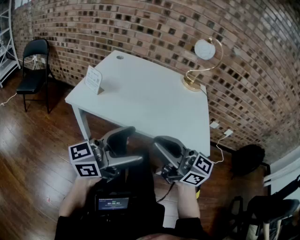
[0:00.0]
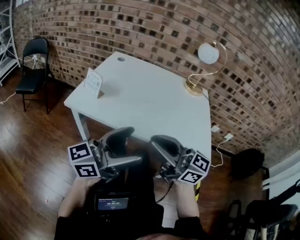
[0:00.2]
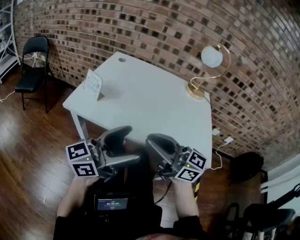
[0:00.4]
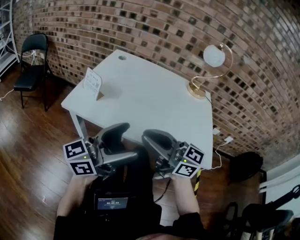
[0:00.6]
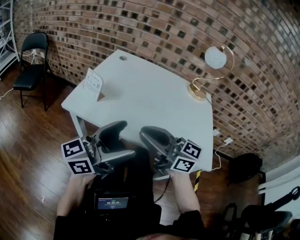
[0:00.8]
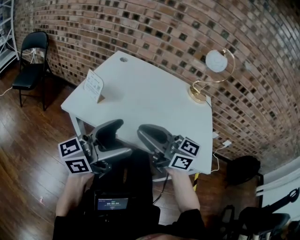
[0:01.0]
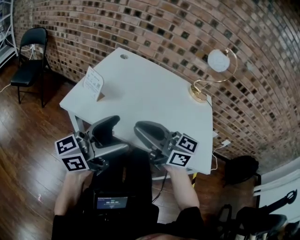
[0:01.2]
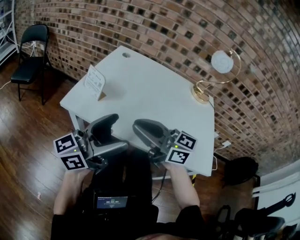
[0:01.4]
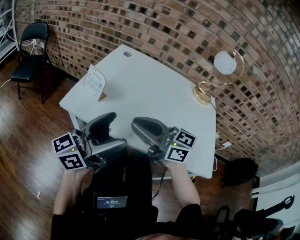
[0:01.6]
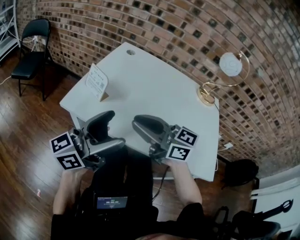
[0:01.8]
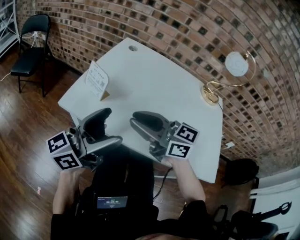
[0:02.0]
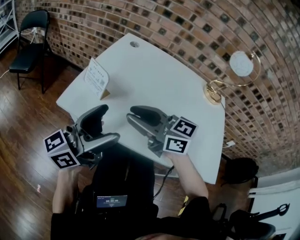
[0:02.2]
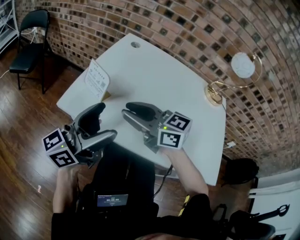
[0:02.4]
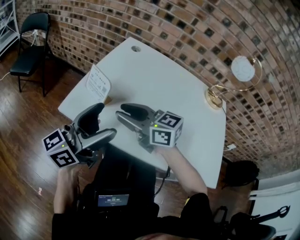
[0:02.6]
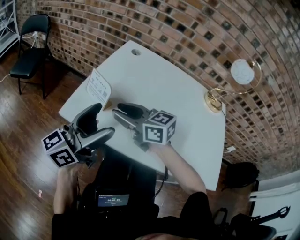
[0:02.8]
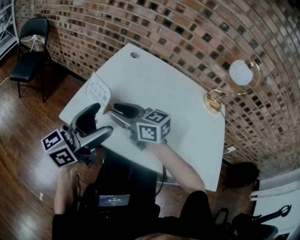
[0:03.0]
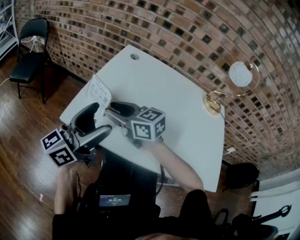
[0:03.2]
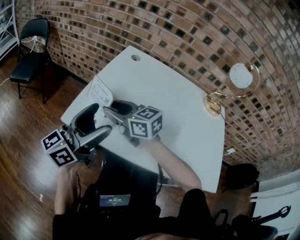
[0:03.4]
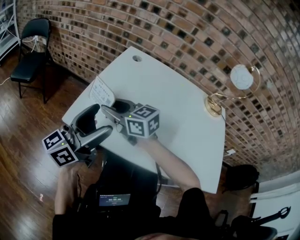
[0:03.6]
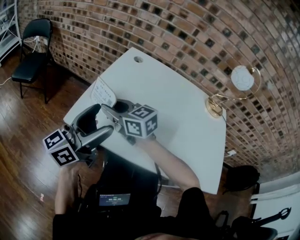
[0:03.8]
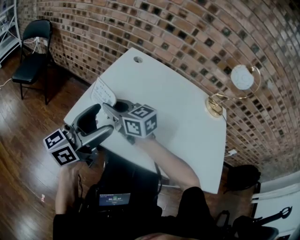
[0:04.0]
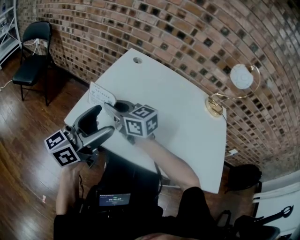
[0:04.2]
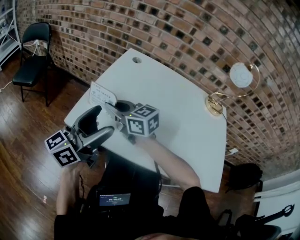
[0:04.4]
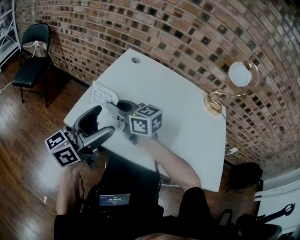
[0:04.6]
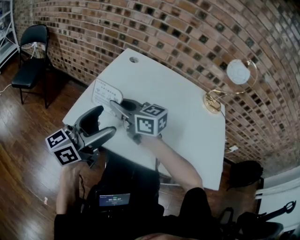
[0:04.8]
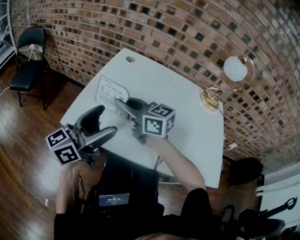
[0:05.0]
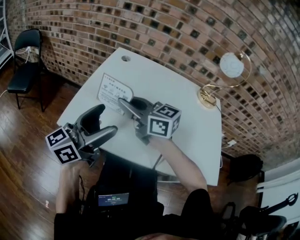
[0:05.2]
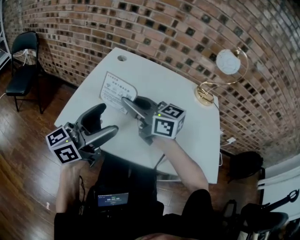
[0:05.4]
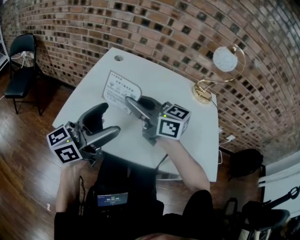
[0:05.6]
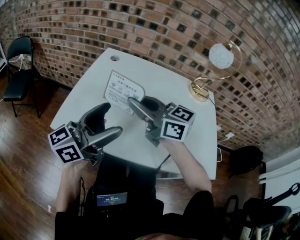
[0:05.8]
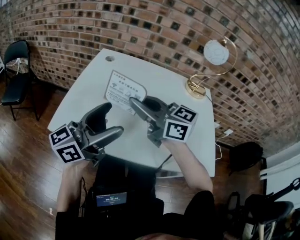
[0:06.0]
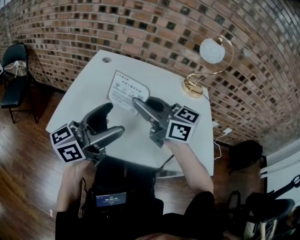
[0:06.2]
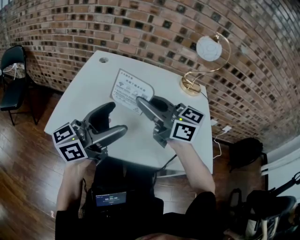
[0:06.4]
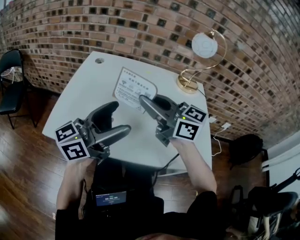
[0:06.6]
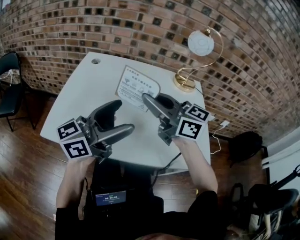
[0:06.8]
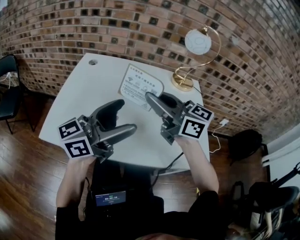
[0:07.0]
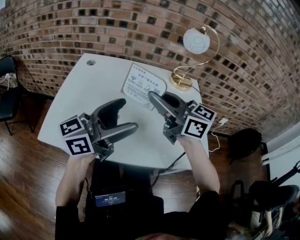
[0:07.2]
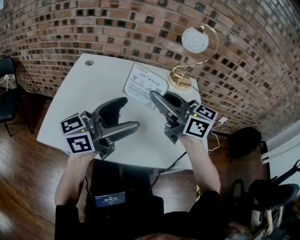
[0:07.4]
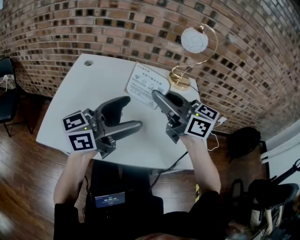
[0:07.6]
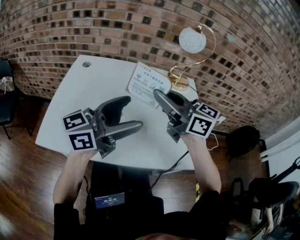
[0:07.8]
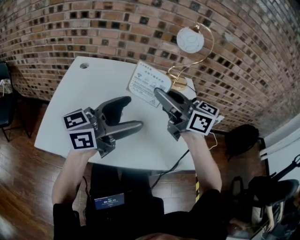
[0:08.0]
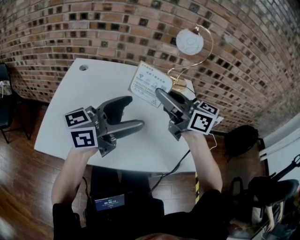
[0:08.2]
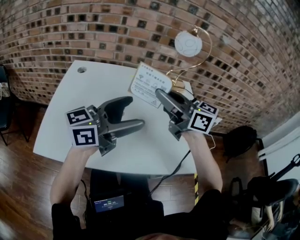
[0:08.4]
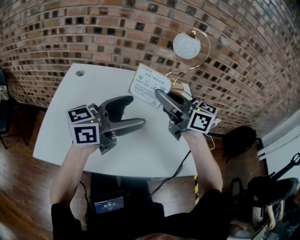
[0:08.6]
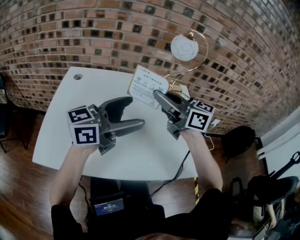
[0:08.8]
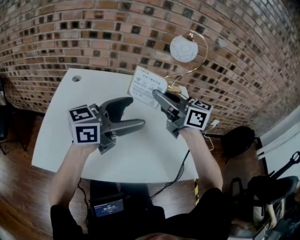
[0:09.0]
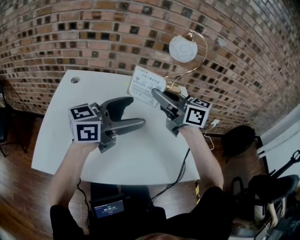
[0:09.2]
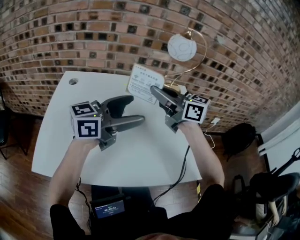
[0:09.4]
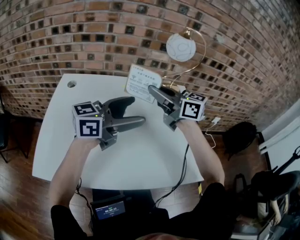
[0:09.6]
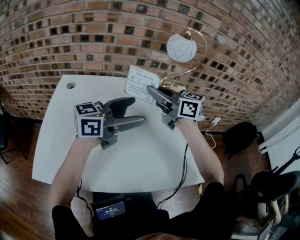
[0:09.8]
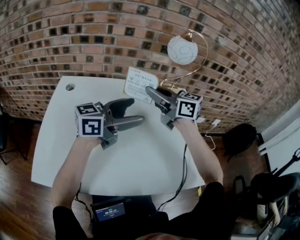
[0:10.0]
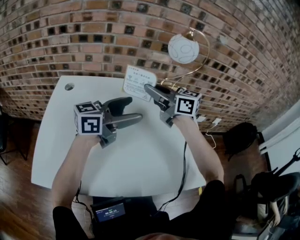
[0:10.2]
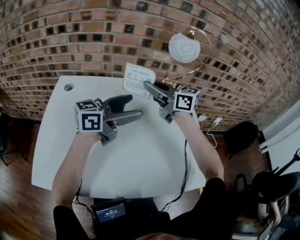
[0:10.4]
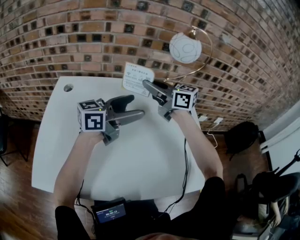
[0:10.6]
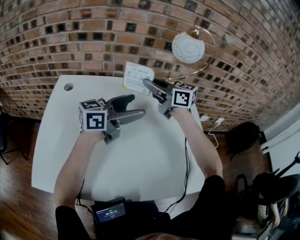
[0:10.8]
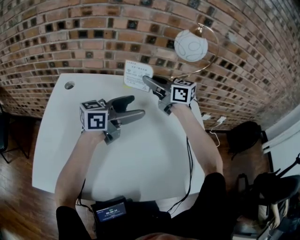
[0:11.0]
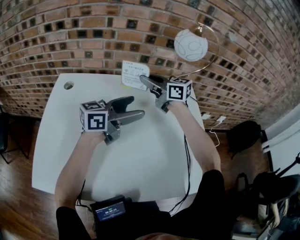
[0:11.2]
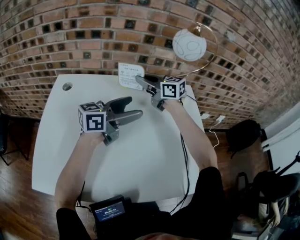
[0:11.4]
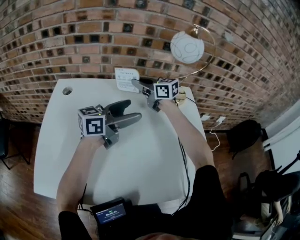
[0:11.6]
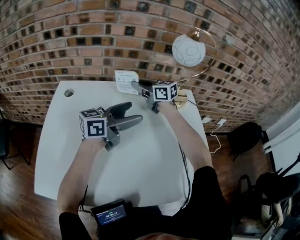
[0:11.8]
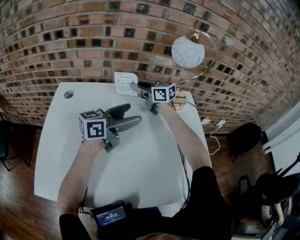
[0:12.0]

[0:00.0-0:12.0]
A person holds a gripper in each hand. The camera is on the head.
0:00.0 to 0:01.6: Both grippers travel together forward and to the left, roughly 20 cm.
0:01.6 to 0:03.0: The right gripper travels forward, to the left and downward by some 20 cm; the left gripper heads forward and to the left, covering about 15 cm.
0:03.0 to 0:04.4: The right gripper ends up some 5 cm from where it was, and closes up.
0:04.4 to 0:06.0: The right gripper is displaced to the right and upward by approximately 20 cm, while the left gripper goes approximately 10 cm to the right.
0:06.0 to 0:07.6: Both grippers travel together to the right, roughly 15 cm.
0:07.6 to 0:09.0: The two grippers go some 10 cm forward.
0:09.0 to 0:10.4: The right gripper ends up some 15 cm from where it was; the left gripper changes place by roughly 10 cm.
0:10.4 to 0:12.0: The right gripper ends up approximately 15 cm from where it was, while the left gripper moves approximately 5 cm.

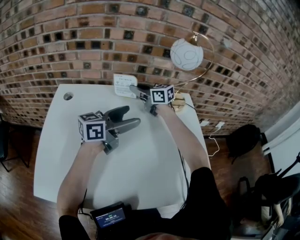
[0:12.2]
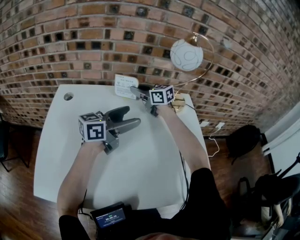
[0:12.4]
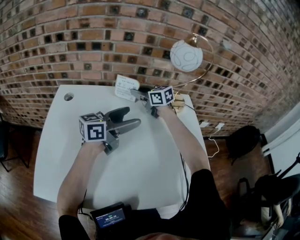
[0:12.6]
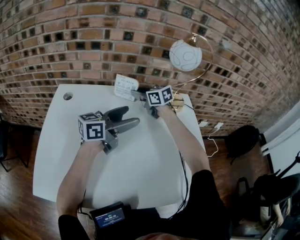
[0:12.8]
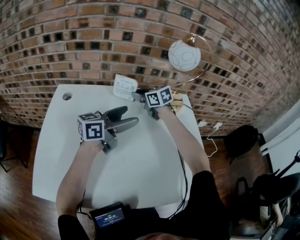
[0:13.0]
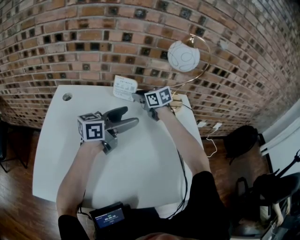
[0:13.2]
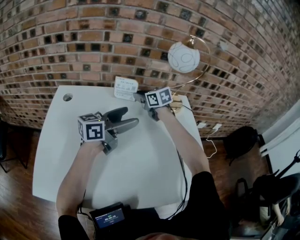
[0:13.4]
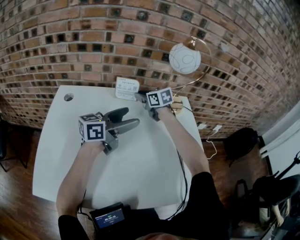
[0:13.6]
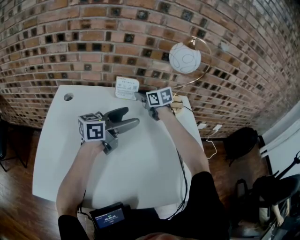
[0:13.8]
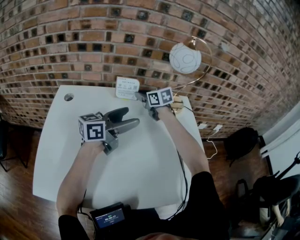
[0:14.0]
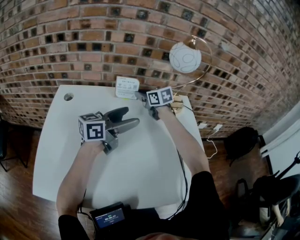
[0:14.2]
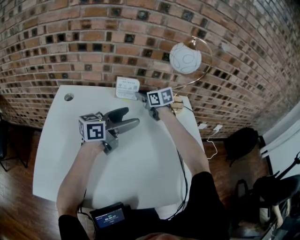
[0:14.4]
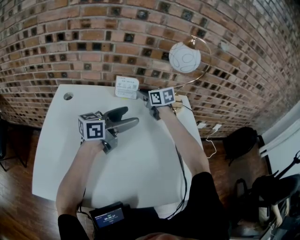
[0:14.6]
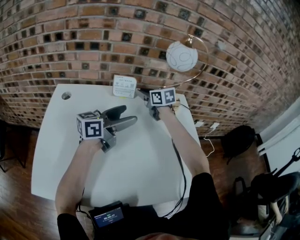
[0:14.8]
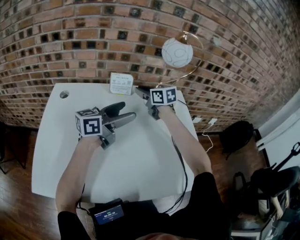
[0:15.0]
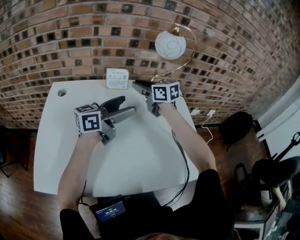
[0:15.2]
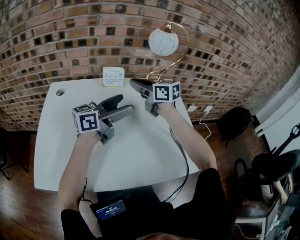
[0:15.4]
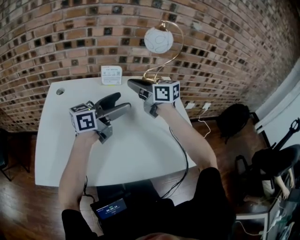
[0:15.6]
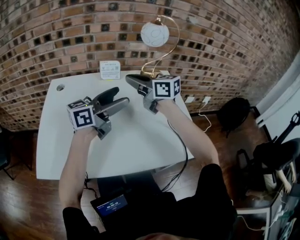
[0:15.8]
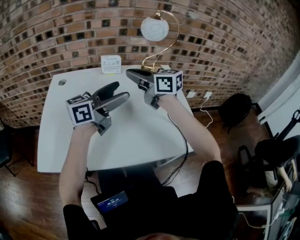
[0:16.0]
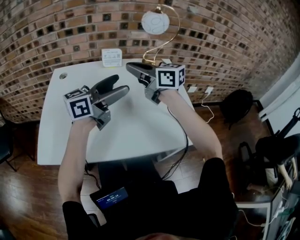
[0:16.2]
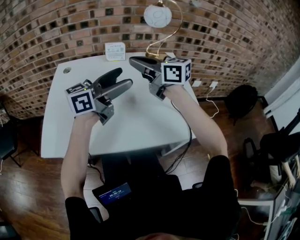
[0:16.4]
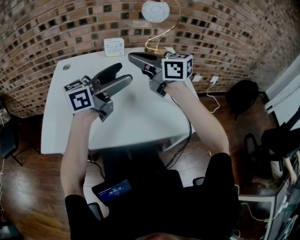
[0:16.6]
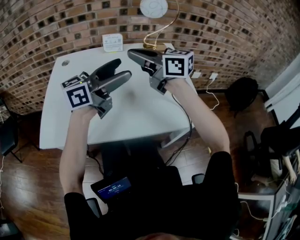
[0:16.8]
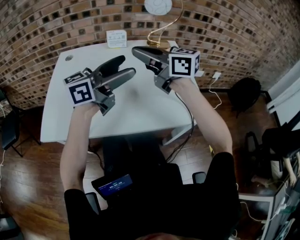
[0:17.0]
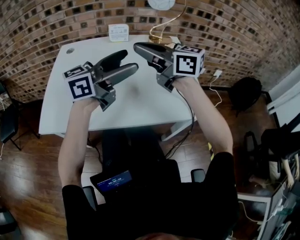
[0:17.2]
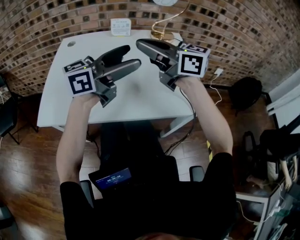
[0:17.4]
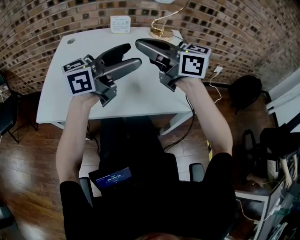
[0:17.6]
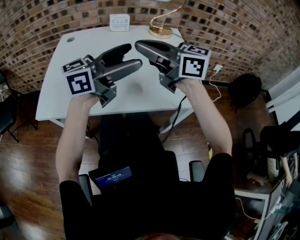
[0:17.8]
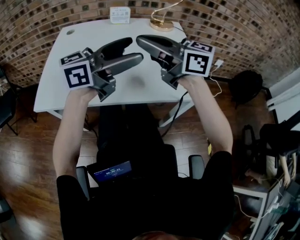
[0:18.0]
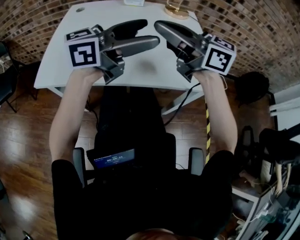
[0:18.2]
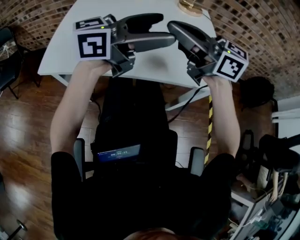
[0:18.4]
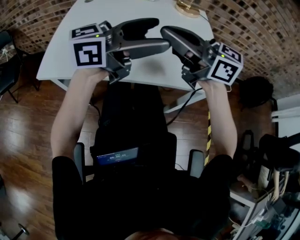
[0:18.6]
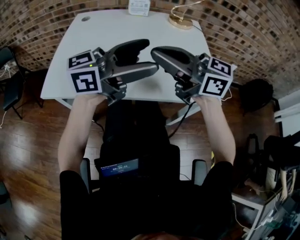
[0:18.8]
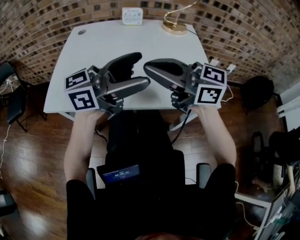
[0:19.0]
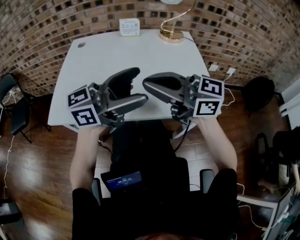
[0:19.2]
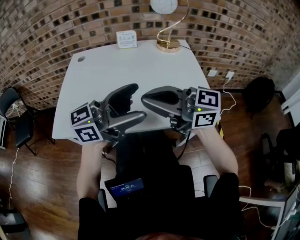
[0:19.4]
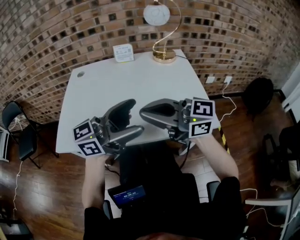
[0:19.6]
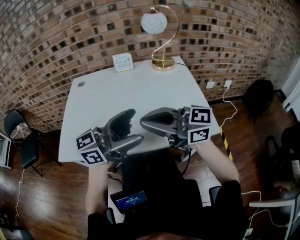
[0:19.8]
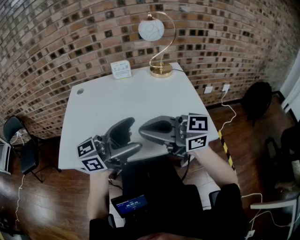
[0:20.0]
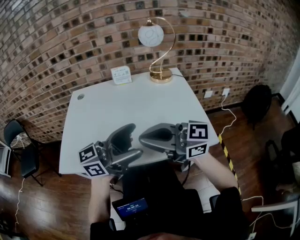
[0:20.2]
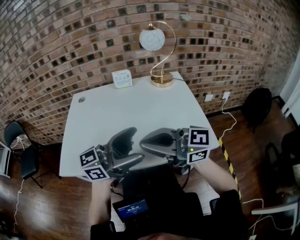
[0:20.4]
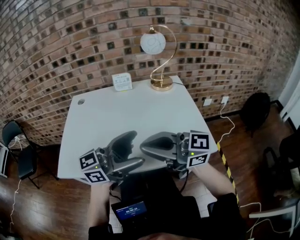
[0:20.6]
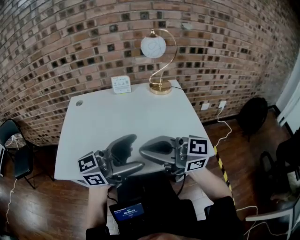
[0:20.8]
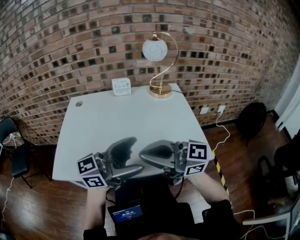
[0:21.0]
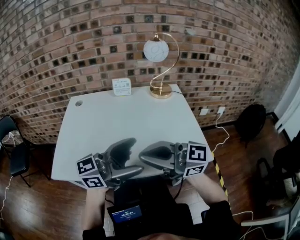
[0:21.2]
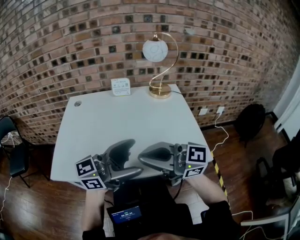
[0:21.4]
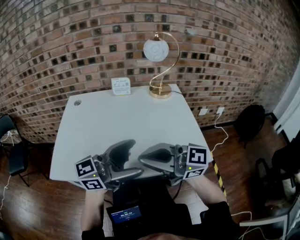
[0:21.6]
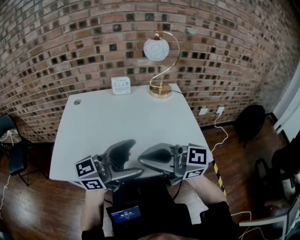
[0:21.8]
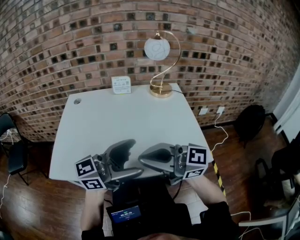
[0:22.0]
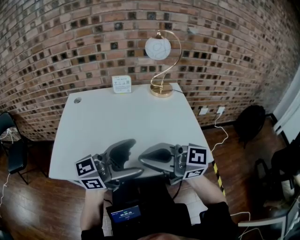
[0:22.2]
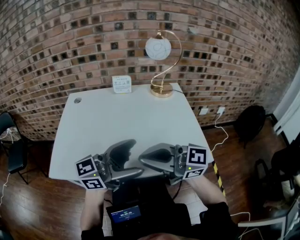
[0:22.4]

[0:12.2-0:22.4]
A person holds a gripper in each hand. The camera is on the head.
0:12.2 to 0:13.6: The right gripper changes place by about 5 cm, and changes its angle by about 20 degrees.
0:13.6 to 0:15.2: The right gripper moves upward and backward, some 10 cm.
0:15.2 to 0:16.6: The left gripper travels backward and upward by roughly 15 cm, while the right gripper travels backward and upward by some 25 cm, rotates about 20 degrees, and closes.
0:16.6 to 0:18.0: The right gripper ends up approximately 15 cm from where it was. Meanwhile the left gripper shifts by some 10 cm.
0:18.0 to 0:19.4: The right gripper ends up roughly 10 cm from where it was, while the left gripper changes place by approximately 5 cm.
0:19.4 to 0:22.4: There are only small adjustments of the grippers.

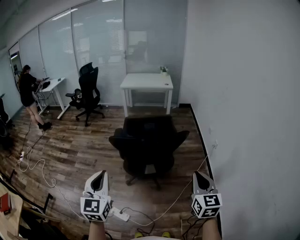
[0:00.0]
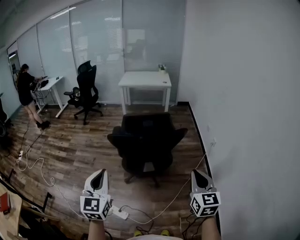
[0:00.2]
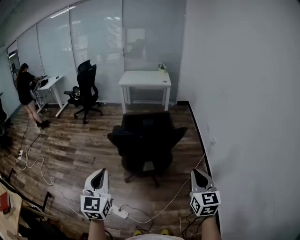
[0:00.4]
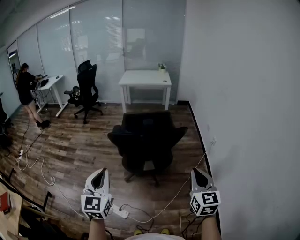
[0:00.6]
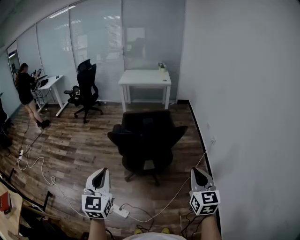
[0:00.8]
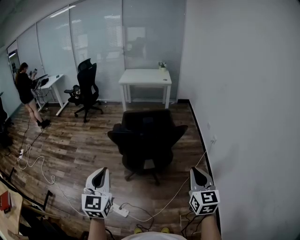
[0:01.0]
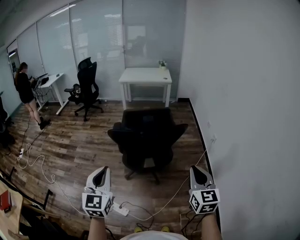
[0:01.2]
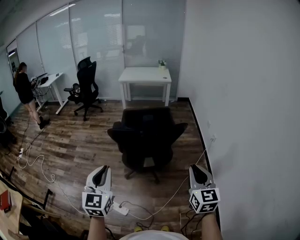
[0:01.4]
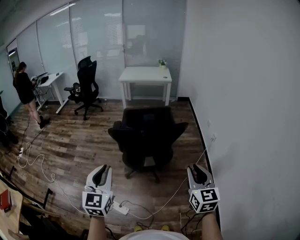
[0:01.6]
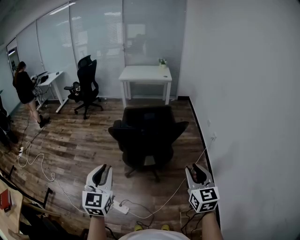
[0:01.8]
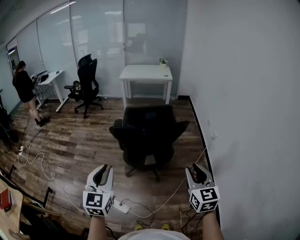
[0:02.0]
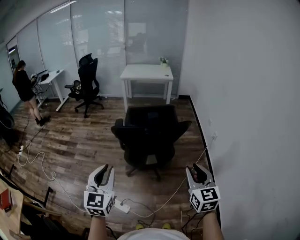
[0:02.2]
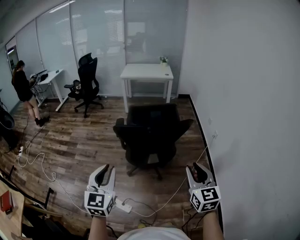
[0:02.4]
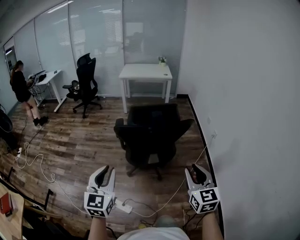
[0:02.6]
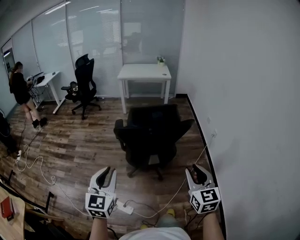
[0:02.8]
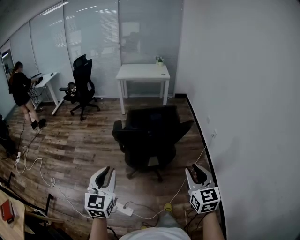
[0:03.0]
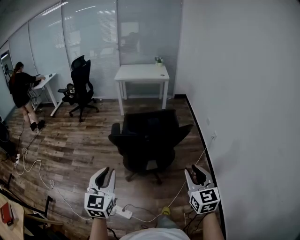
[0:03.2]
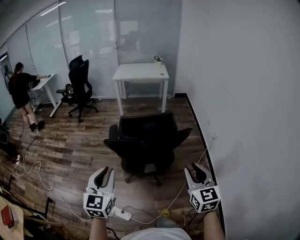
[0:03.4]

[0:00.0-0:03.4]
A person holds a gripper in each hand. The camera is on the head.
0:00.0 to 0:01.6: There are only small adjustments of the grippers.
0:01.6 to 0:03.4: Both grippers move forward, some 10 cm.
